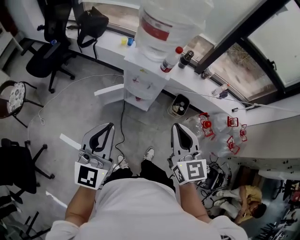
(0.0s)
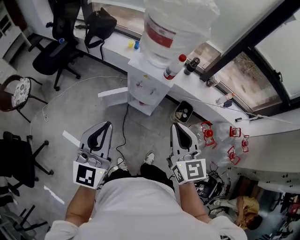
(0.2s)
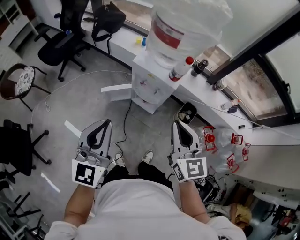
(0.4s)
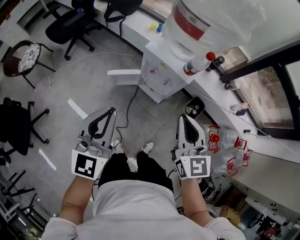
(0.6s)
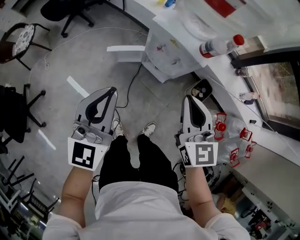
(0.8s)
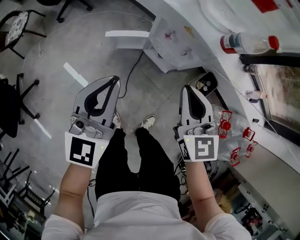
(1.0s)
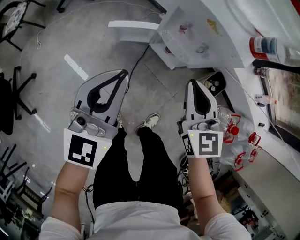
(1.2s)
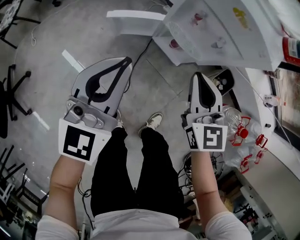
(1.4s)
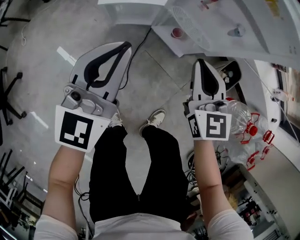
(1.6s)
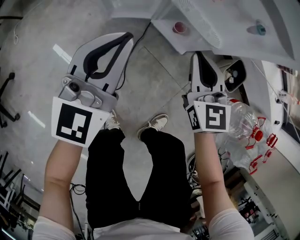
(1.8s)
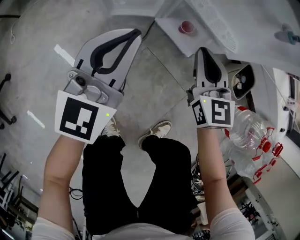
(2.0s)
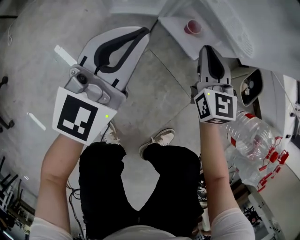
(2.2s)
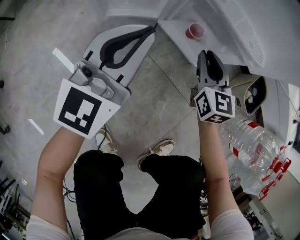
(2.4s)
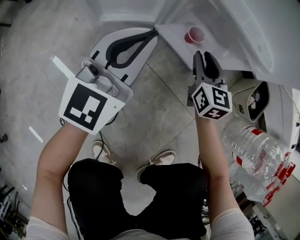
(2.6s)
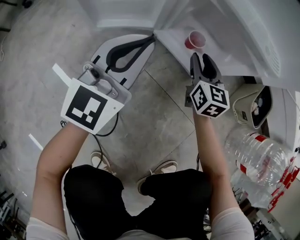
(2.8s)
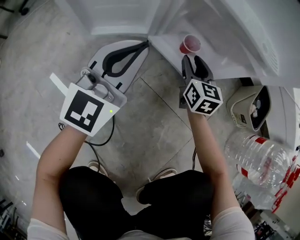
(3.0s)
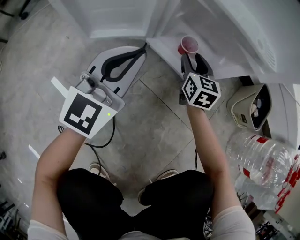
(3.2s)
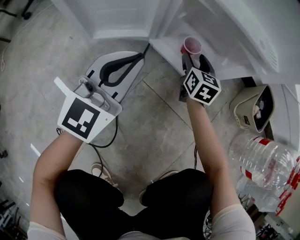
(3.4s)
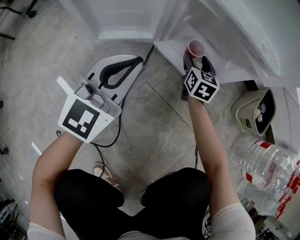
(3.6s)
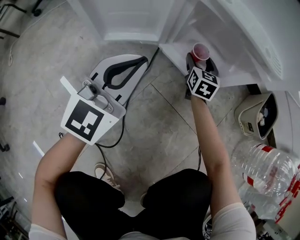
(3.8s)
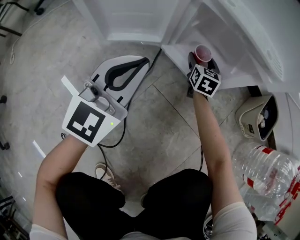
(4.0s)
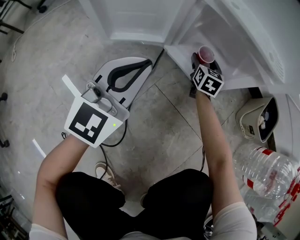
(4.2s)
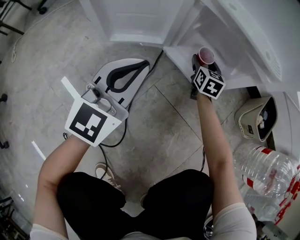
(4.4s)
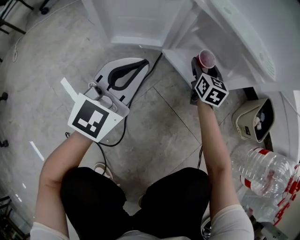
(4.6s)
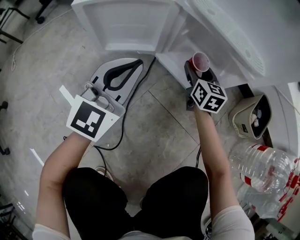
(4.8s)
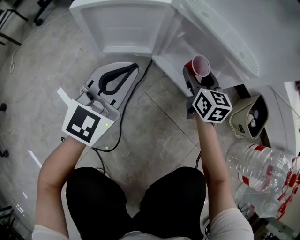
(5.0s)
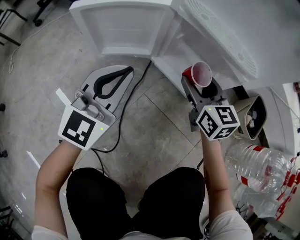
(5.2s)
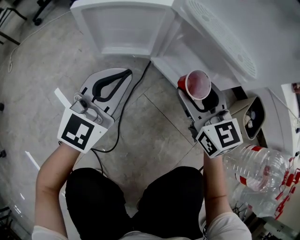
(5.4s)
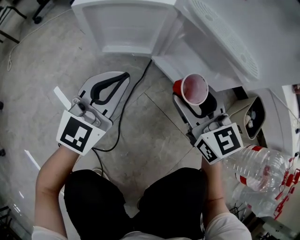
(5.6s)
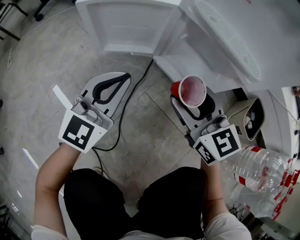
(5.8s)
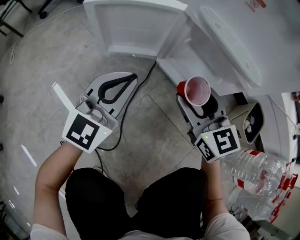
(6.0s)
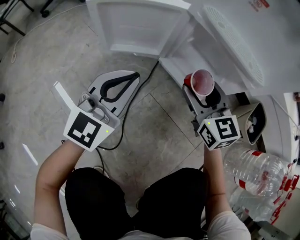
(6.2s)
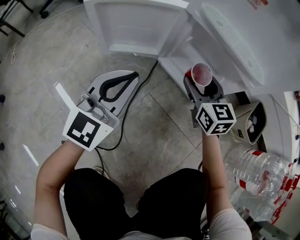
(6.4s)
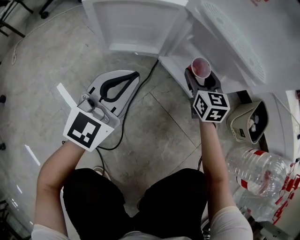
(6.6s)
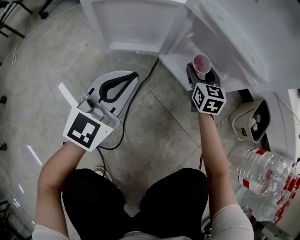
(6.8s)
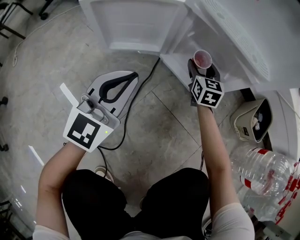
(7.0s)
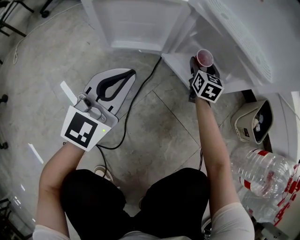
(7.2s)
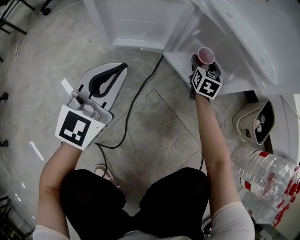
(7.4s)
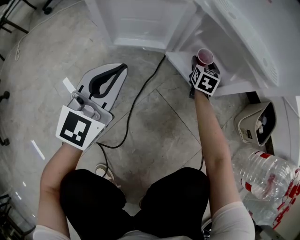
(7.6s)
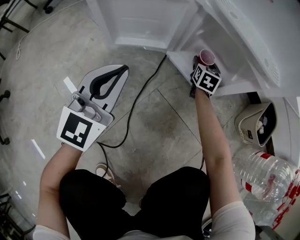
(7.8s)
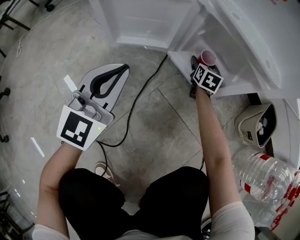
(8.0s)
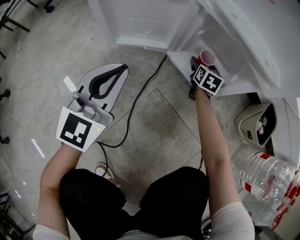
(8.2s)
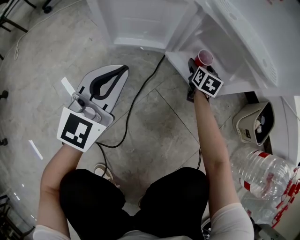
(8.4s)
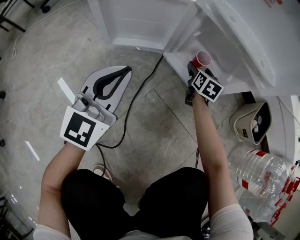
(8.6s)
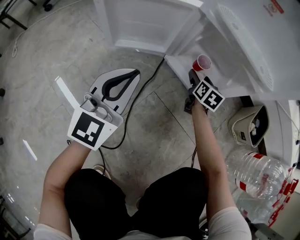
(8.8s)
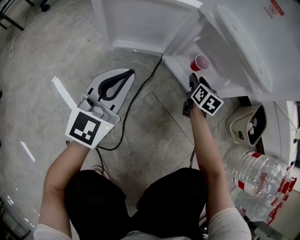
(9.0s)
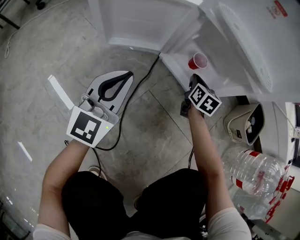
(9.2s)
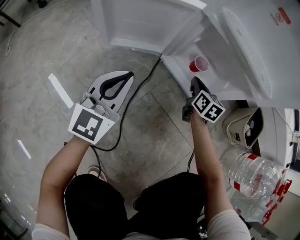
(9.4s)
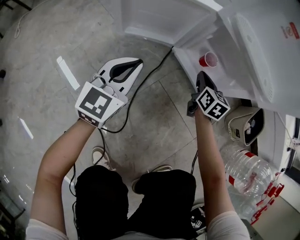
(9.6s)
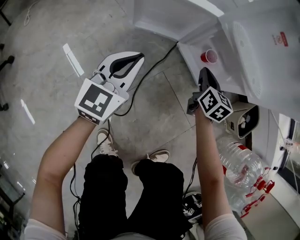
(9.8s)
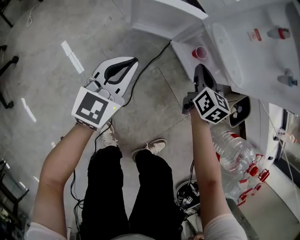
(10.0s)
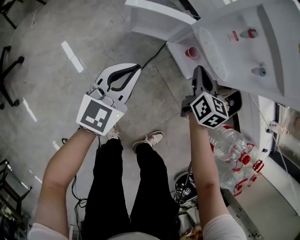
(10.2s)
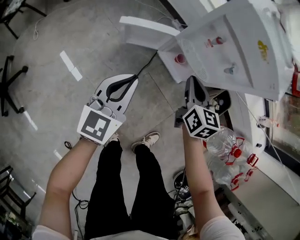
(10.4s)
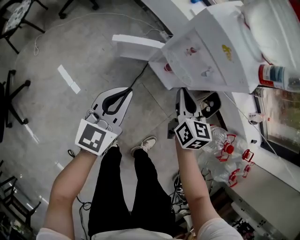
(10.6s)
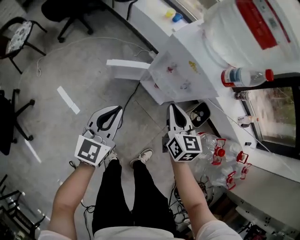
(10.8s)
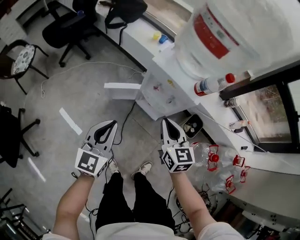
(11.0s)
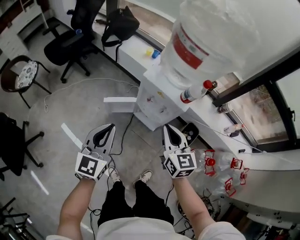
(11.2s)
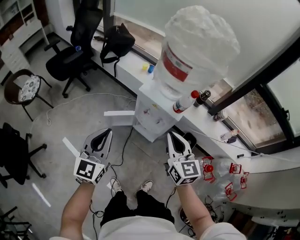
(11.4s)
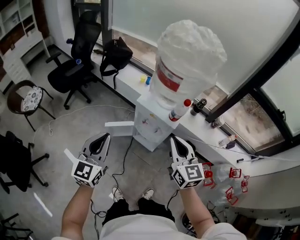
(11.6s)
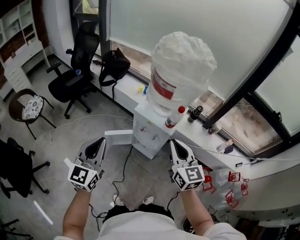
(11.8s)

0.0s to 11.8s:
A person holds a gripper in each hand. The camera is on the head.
0.0s to 1.4s: The left gripper travels downward by roughly 30 cm. Meanwhile the right gripper shifts approximately 40 cm downward and forward.
1.4s to 3.0s: The two grippers go some 50 cm downward. The right gripper opens its fingers.
3.0s to 4.4s: The right gripper shifts some 5 cm forward, and opens up.
4.4s to 6.0s: The right gripper travels upward, backward and to the left by approximately 30 cm, and swivels roughly 30 degrees.
6.0s to 7.4s: The right gripper travels forward and downward by about 25 cm, and turns by some 30 degrees.
7.4s to 8.8s: The right gripper ends up some 5 cm from where it was.
8.8s to 10.4s: The two grippers go about 40 cm upward. The right gripper closes.
10.4s to 11.8s: The grippers both shift upward by roughly 50 cm. The right gripper changes its angle by about 20 degrees.

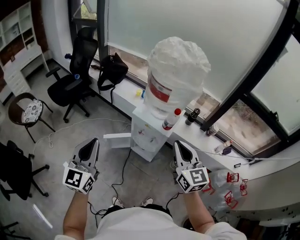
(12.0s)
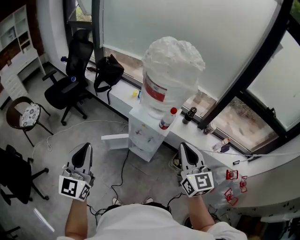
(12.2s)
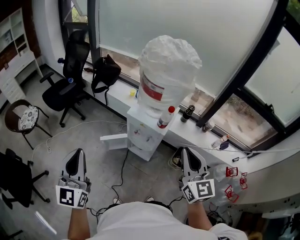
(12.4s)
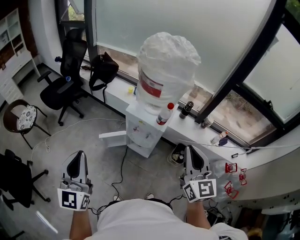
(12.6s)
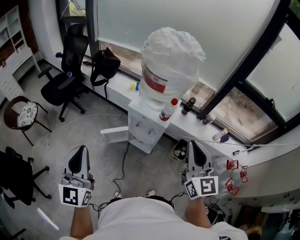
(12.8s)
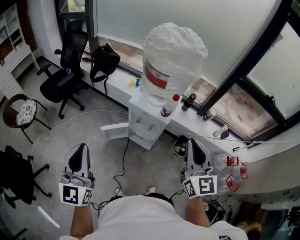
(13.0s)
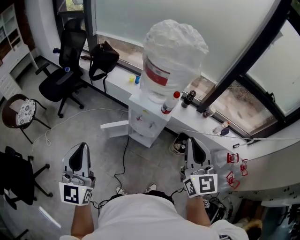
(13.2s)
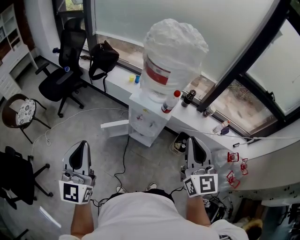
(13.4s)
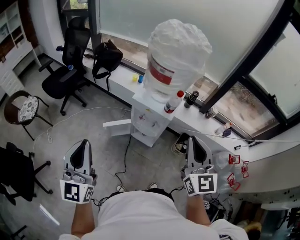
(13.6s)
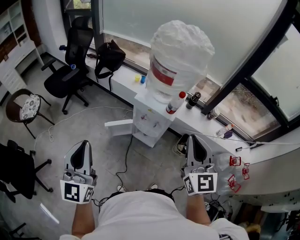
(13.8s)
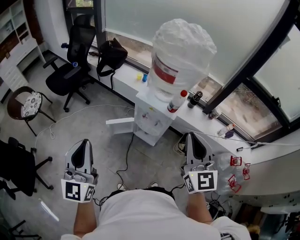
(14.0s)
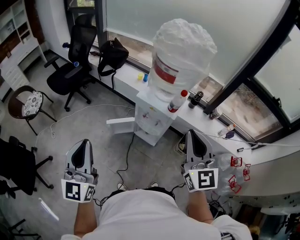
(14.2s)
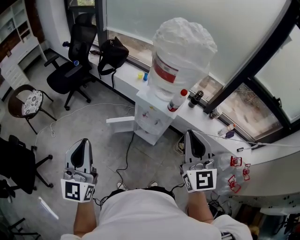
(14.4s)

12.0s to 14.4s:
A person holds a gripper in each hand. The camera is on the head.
12.0s to 13.2s: Both grippers travel together backward, about 5 cm.
13.2s to 14.4s: The grippers move only a little.

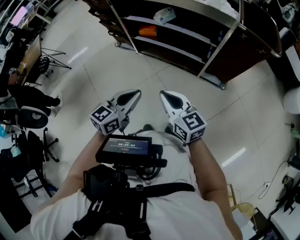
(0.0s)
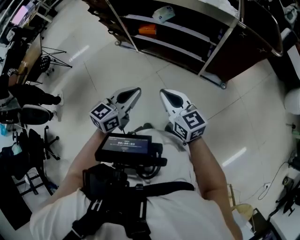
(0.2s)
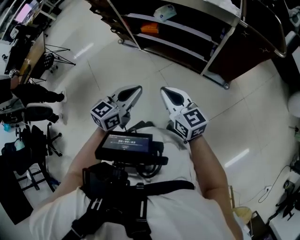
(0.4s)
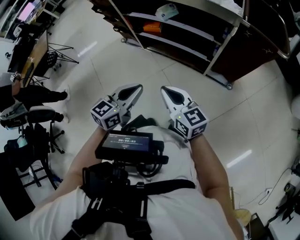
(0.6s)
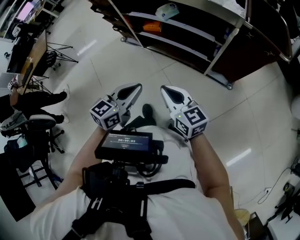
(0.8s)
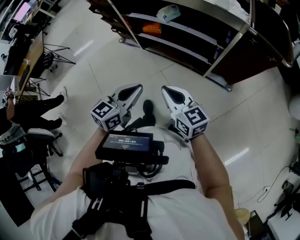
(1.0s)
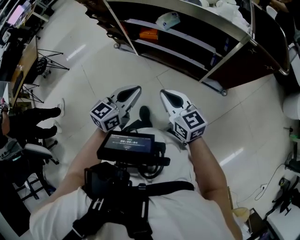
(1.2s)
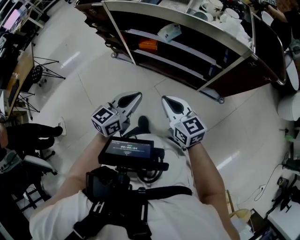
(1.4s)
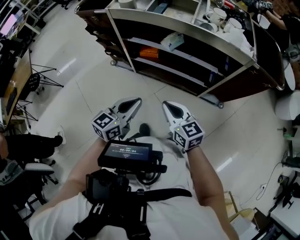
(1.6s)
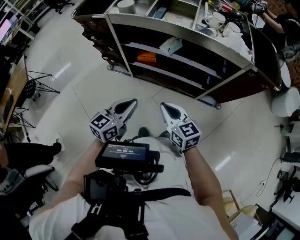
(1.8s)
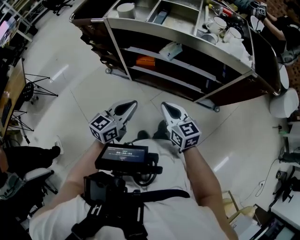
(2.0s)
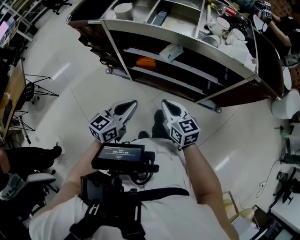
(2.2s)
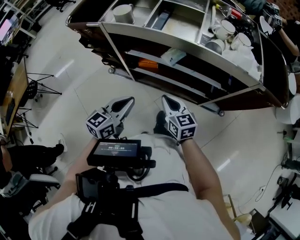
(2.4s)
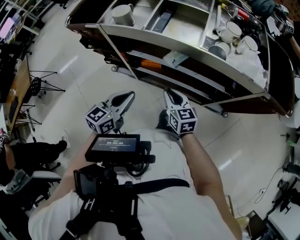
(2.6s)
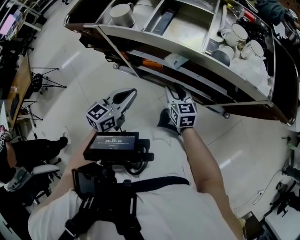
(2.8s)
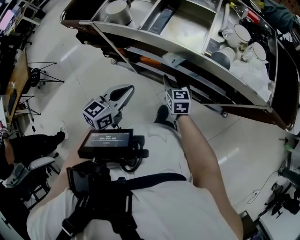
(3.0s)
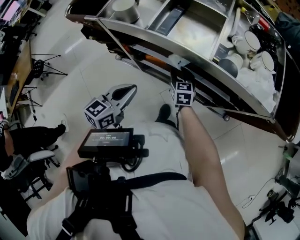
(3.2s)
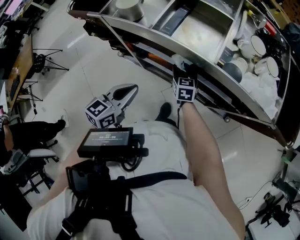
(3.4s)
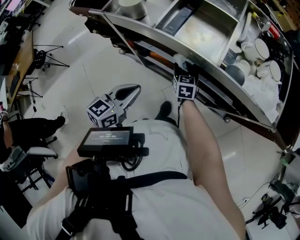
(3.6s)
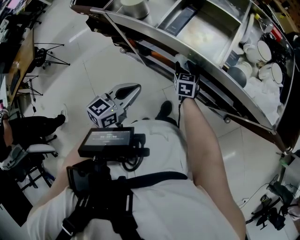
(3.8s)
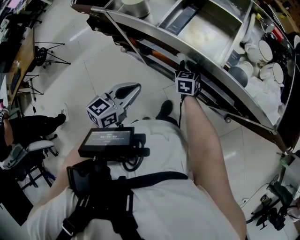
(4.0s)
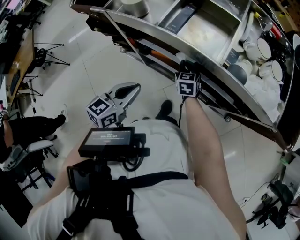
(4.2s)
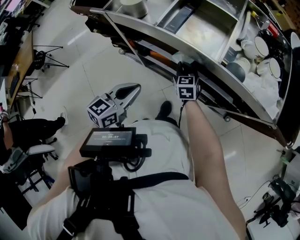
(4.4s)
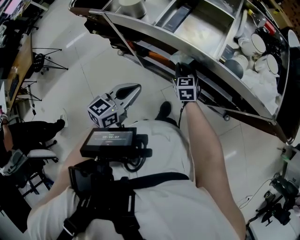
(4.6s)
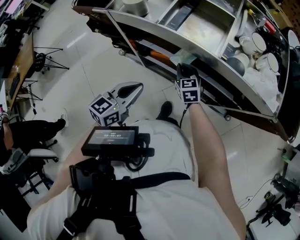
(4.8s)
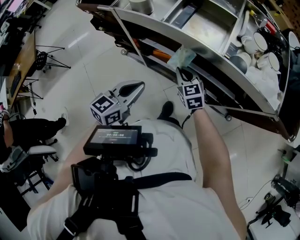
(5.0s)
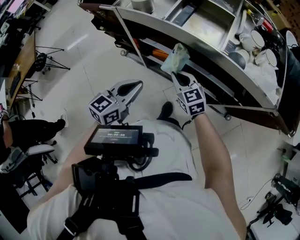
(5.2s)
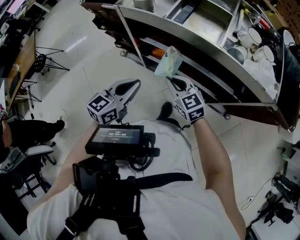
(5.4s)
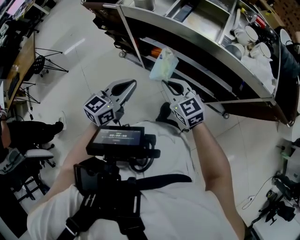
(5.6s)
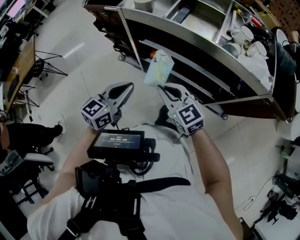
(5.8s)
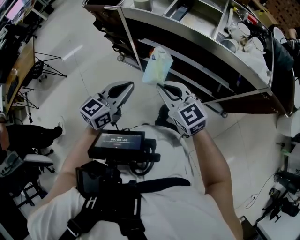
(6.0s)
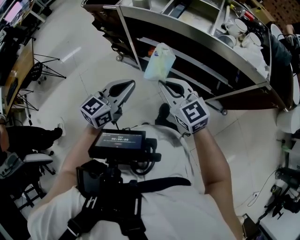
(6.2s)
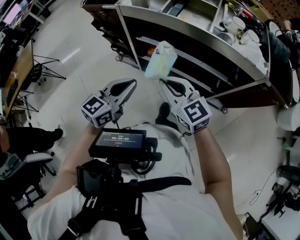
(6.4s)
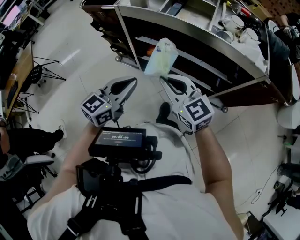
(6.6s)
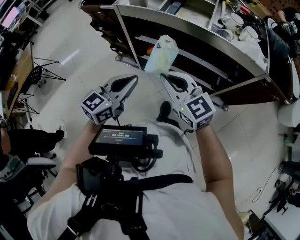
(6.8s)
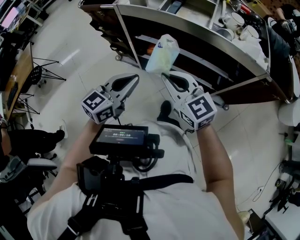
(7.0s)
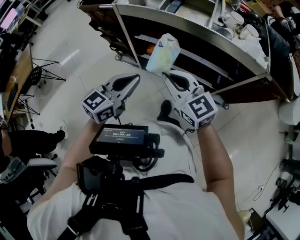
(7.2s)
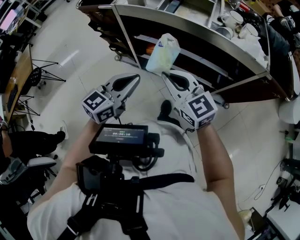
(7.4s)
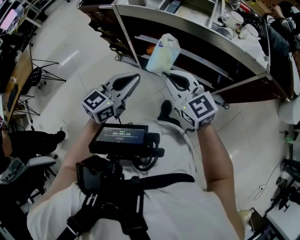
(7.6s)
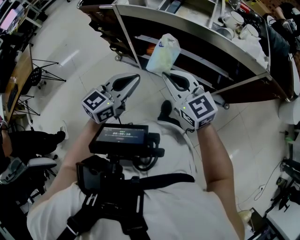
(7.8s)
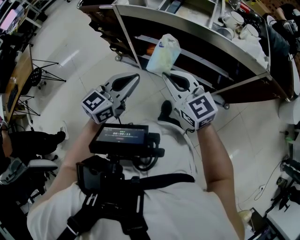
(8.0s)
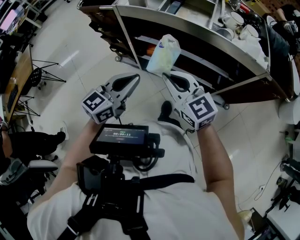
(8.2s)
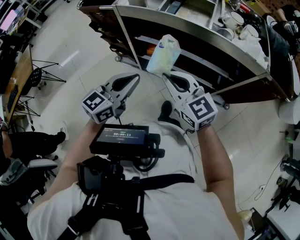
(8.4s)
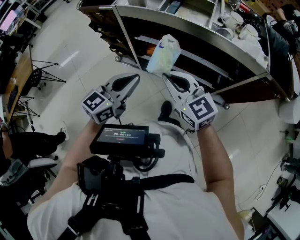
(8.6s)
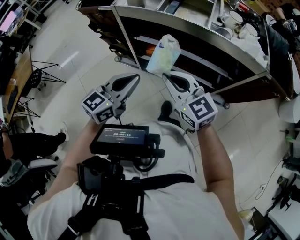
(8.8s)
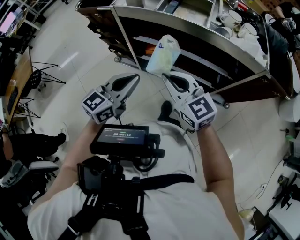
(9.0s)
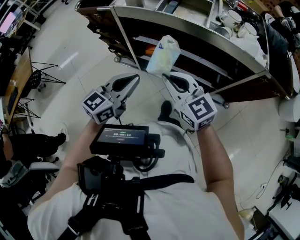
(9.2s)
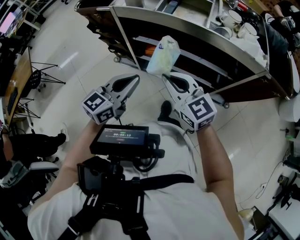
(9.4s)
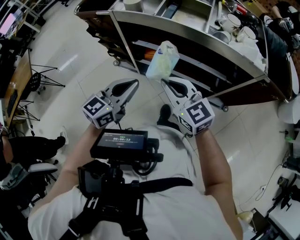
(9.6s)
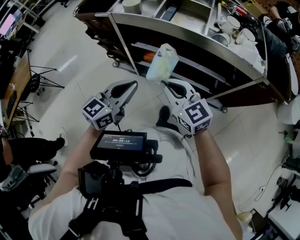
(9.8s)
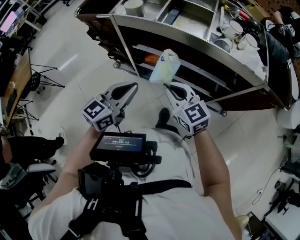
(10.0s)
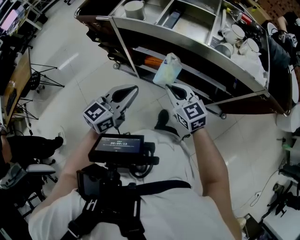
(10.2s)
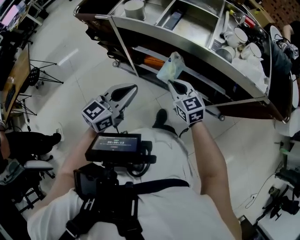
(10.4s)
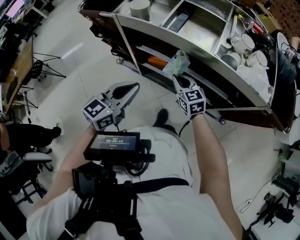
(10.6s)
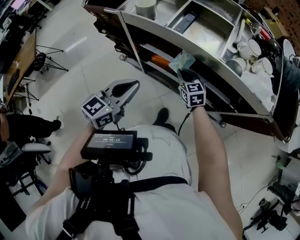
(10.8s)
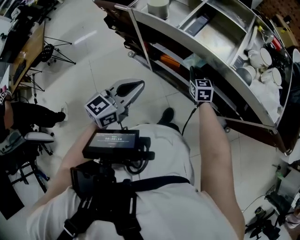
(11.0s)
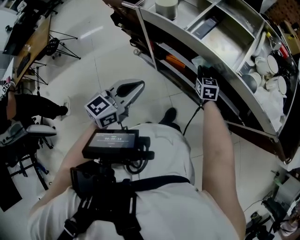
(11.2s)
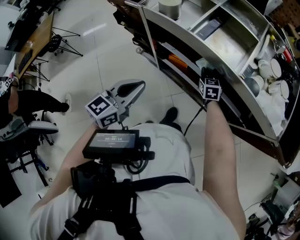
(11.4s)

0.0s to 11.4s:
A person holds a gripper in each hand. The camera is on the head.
0.0s to 1.4s: Both grippers move forward, some 15 cm.
1.4s to 2.8s: The grippers both shift forward by roughly 25 cm. The right gripper opens.
2.8s to 4.2s: The right gripper heads forward and downward, covering some 15 cm, and closes its fingers.
4.2s to 5.6s: The right gripper is displaced backward and upward by some 25 cm, and changes its angle by approximately 30 degrees. The left gripper travels backward by roughly 5 cm.
5.6s to 7.2s: The left gripper ends up about 5 cm from where it was; the right gripper travels upward and backward by roughly 10 cm.
7.2s to 8.6s: Neither gripper changes place.
8.6s to 10.0s: The right gripper heads downward, covering some 5 cm.
10.0s to 11.4s: The right gripper travels forward and downward by approximately 30 cm, and changes its angle by about 30 degrees; the left gripper ends up about 5 cm from where it was.
